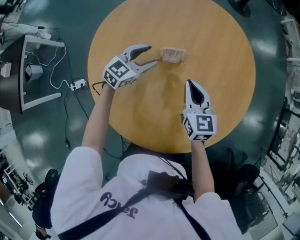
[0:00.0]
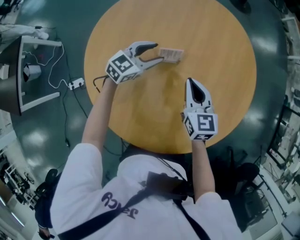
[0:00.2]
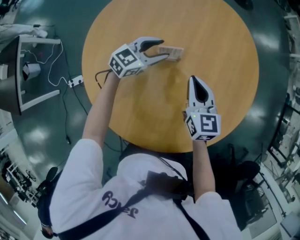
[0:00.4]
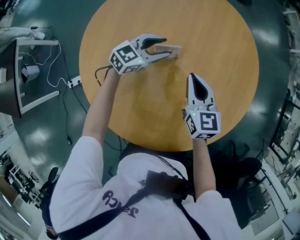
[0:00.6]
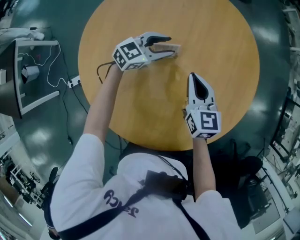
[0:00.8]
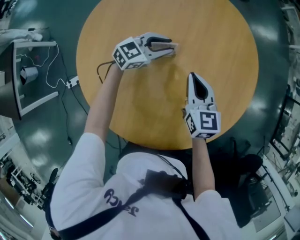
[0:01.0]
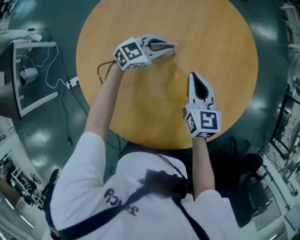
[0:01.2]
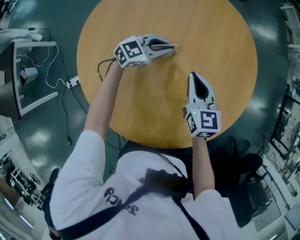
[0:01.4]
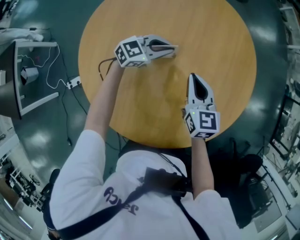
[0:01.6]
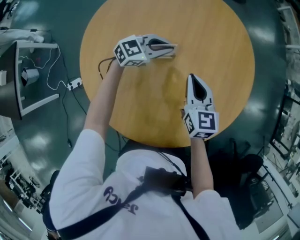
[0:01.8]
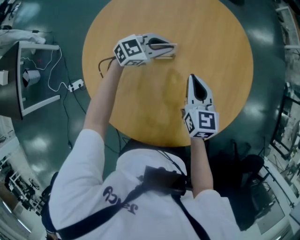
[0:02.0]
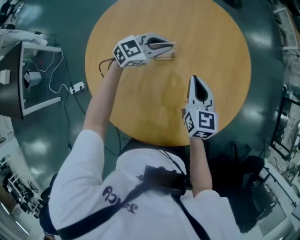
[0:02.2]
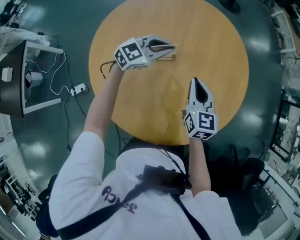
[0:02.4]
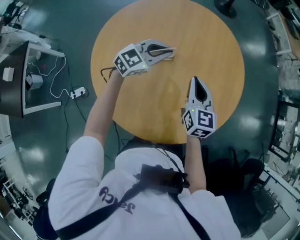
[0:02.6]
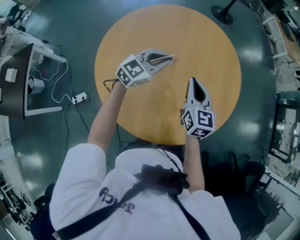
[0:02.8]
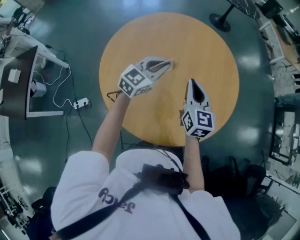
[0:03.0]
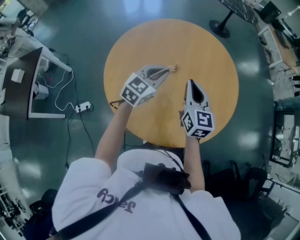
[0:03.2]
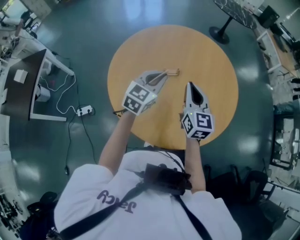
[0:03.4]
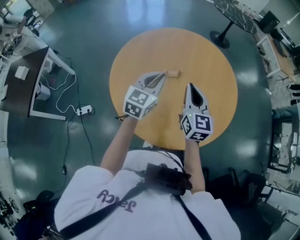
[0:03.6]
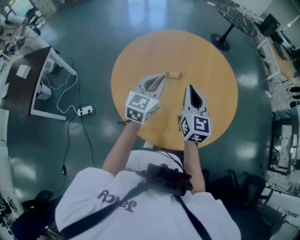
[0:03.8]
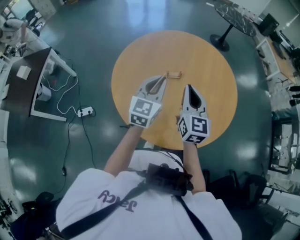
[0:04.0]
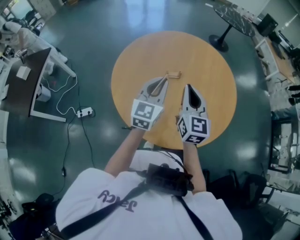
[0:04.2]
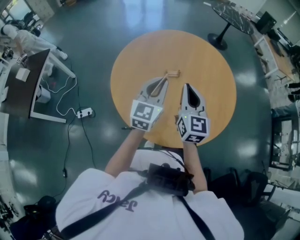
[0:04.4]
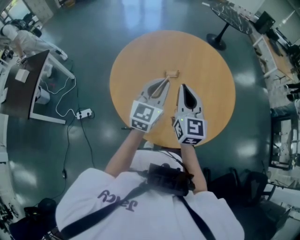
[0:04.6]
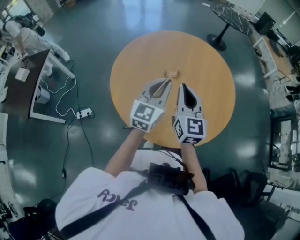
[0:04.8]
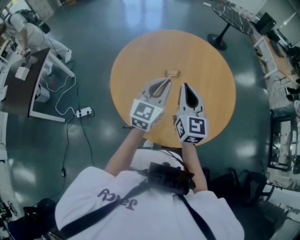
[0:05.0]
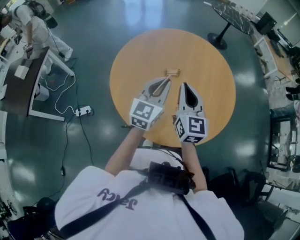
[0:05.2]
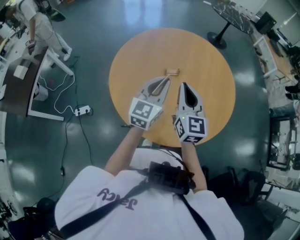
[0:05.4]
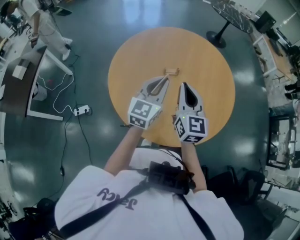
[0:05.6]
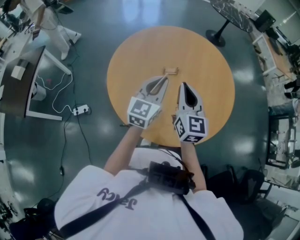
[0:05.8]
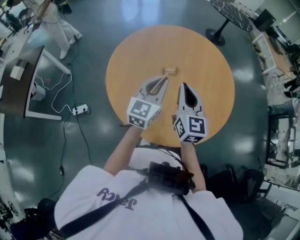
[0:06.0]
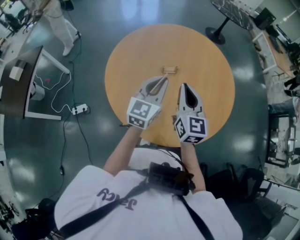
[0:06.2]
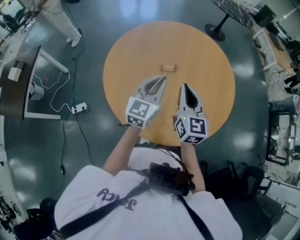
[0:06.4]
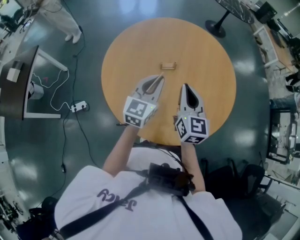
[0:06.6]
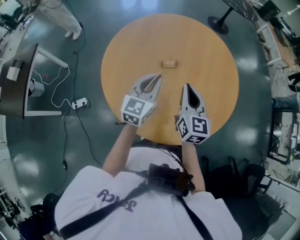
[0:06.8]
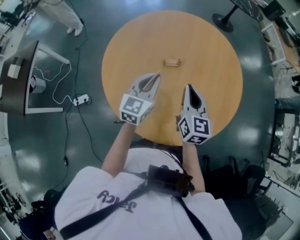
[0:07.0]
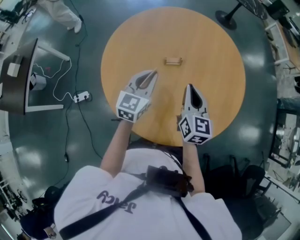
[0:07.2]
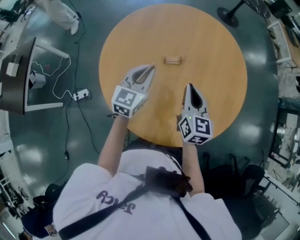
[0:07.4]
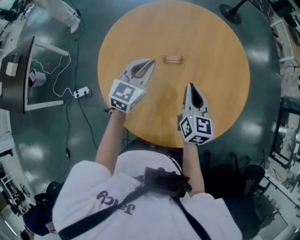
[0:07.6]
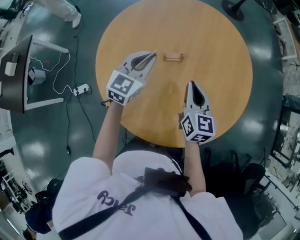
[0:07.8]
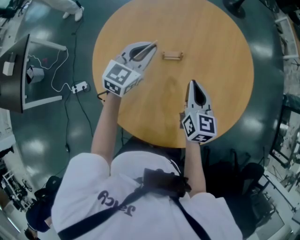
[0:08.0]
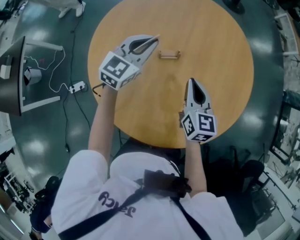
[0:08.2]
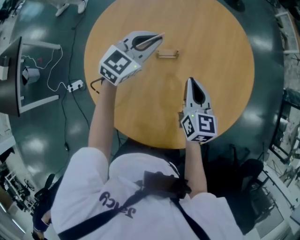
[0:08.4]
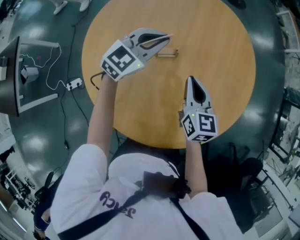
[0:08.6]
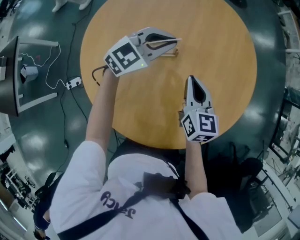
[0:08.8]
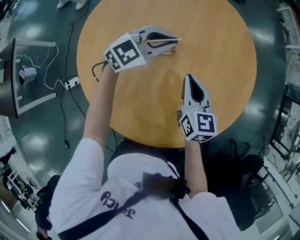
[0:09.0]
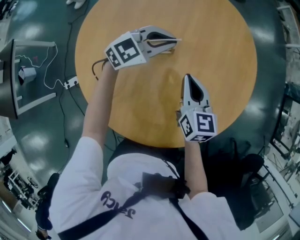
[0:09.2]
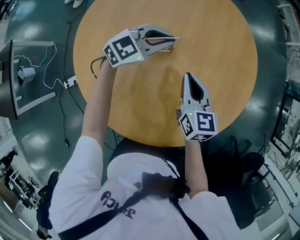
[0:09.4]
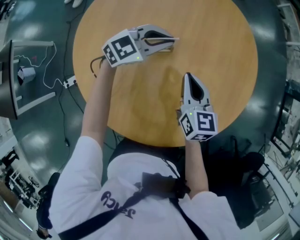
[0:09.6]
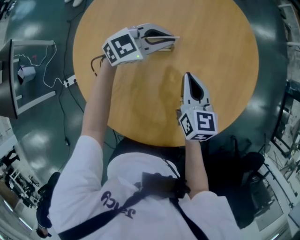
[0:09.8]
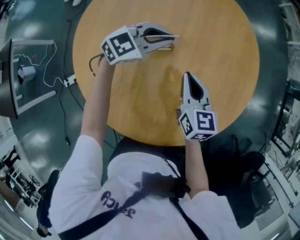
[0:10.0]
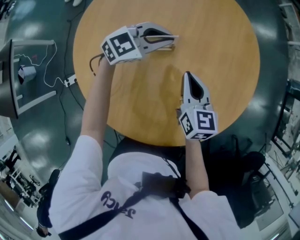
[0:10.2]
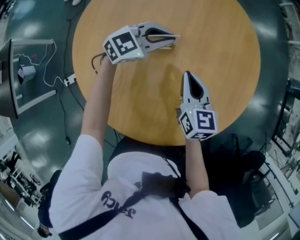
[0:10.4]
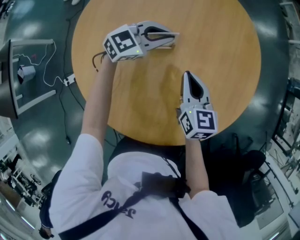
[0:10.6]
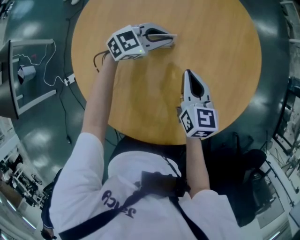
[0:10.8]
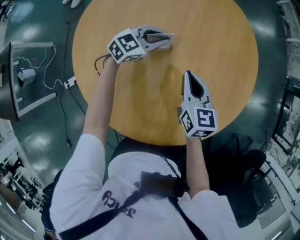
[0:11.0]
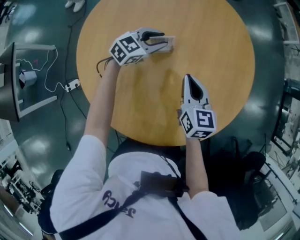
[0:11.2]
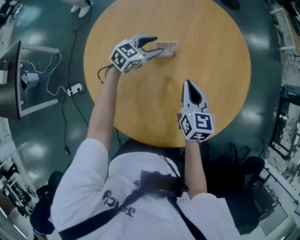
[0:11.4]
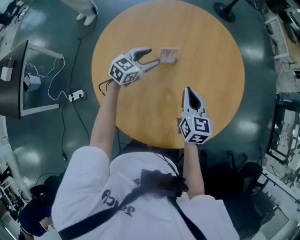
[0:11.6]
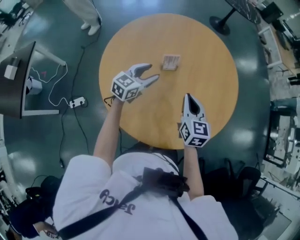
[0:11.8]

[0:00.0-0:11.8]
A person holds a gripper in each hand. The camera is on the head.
0:00.0 to 0:01.4: The left gripper goes approximately 10 cm to the right and forward, rotates roughly 20 degrees, and closes its fingers.
0:01.4 to 0:03.0: Both grippers move upward and backward, roughly 15 cm. The left gripper changes its angle by roughly 20 degrees.
0:03.0 to 0:04.4: Both grippers travel together backward and upward, some 10 cm. The left gripper rotates approximately 30 degrees.
0:04.4 to 0:06.0: The grippers move only a little.
0:06.0 to 0:07.4: Both grippers move downward and forward, approximately 10 cm.
0:07.4 to 0:08.8: The left gripper is displaced forward and to the right by approximately 15 cm, and rotates some 40 degrees. The right gripper is displaced forward and downward by some 10 cm.
0:08.8 to 0:10.4: The left gripper travels downward by roughly 5 cm.
0:10.4 to 0:11.8: The right gripper heads backward and upward, covering approximately 10 cm. Meanwhile the left gripper is displaced backward and to the left by approximately 15 cm, changes its angle by some 30 degrees, and opens up.

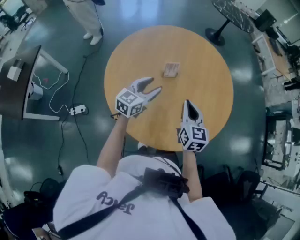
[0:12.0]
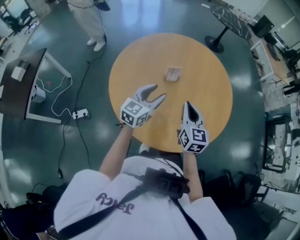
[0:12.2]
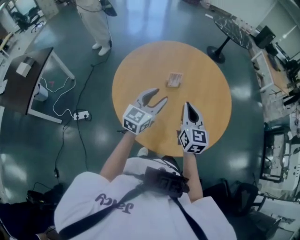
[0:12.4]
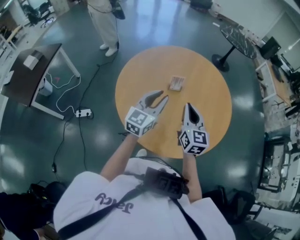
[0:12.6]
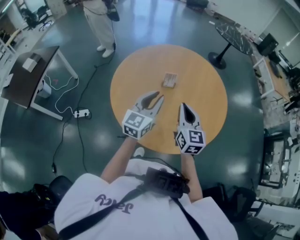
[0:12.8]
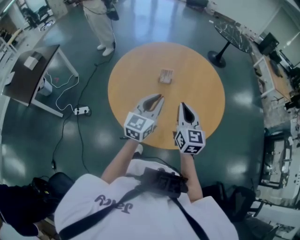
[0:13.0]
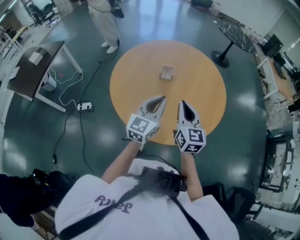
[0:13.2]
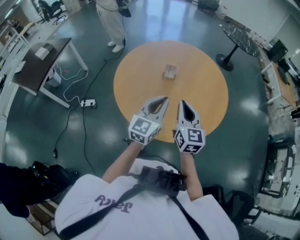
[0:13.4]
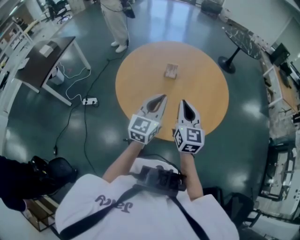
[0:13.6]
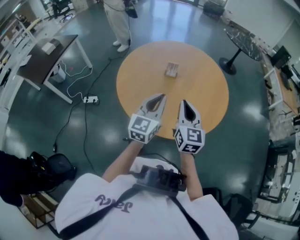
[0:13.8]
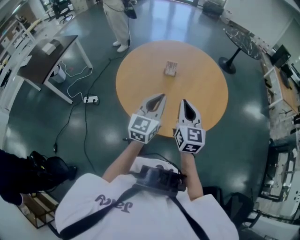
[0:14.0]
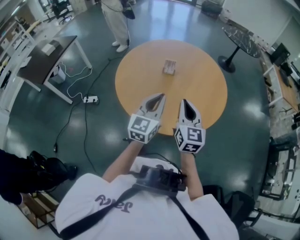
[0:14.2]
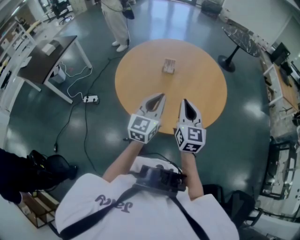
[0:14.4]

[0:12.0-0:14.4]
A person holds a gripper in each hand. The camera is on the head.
0:12.0 to 0:13.2: The left gripper heads backward, upward and to the right, covering some 20 cm, rotates some 30 degrees, and closes up. Meanwhile the right gripper moves backward, upward and to the right, about 10 cm.
0:13.2 to 0:14.4: Both grippers move backward, some 5 cm.

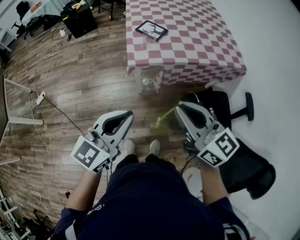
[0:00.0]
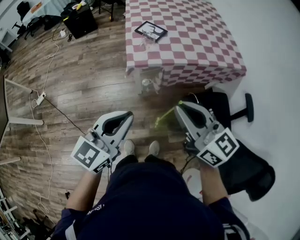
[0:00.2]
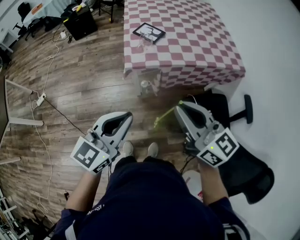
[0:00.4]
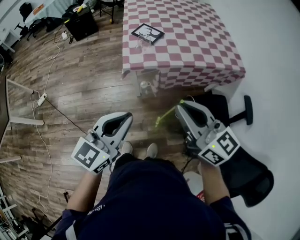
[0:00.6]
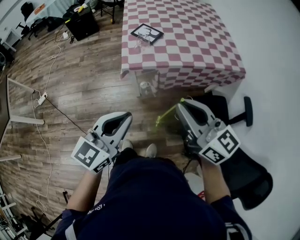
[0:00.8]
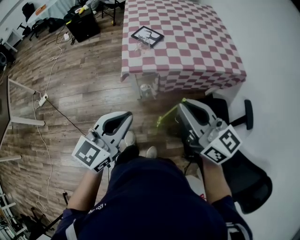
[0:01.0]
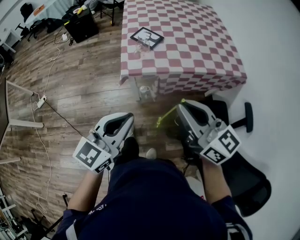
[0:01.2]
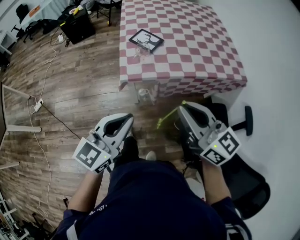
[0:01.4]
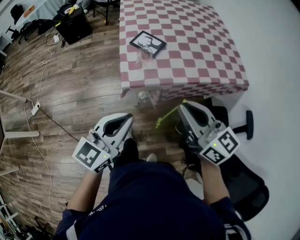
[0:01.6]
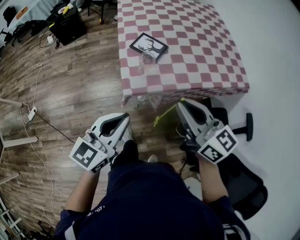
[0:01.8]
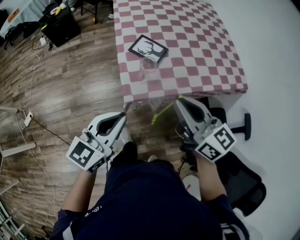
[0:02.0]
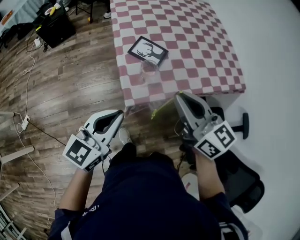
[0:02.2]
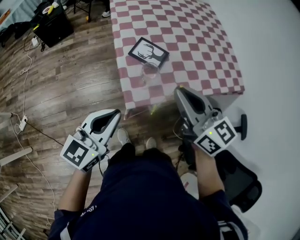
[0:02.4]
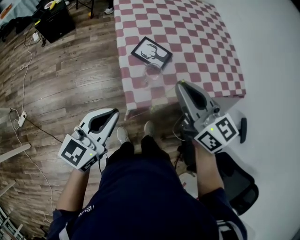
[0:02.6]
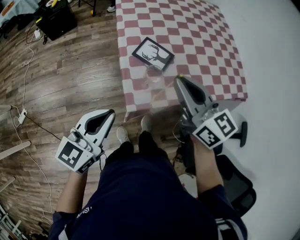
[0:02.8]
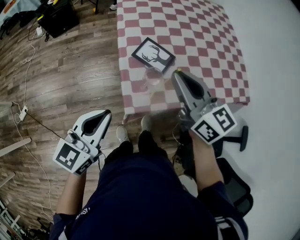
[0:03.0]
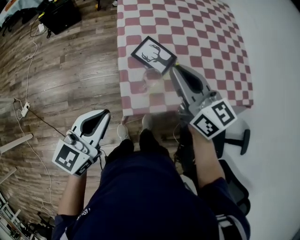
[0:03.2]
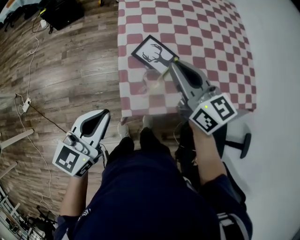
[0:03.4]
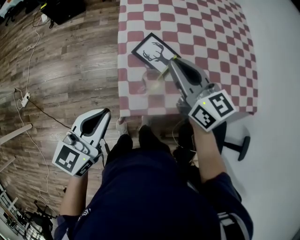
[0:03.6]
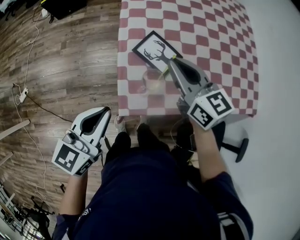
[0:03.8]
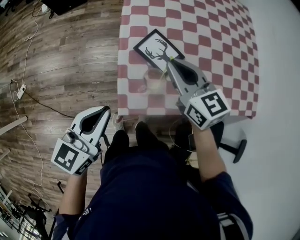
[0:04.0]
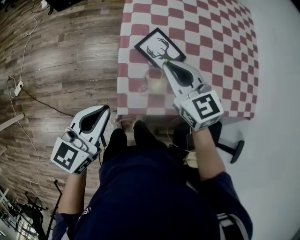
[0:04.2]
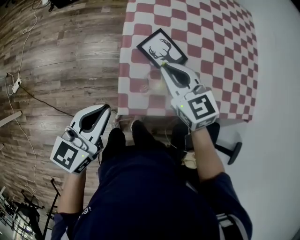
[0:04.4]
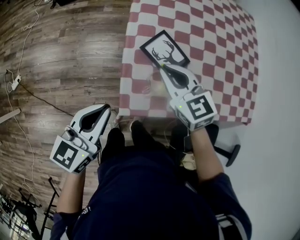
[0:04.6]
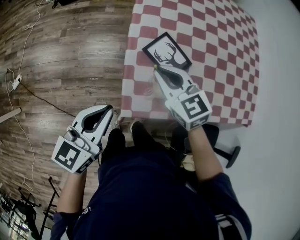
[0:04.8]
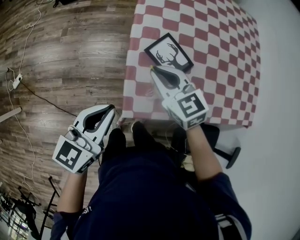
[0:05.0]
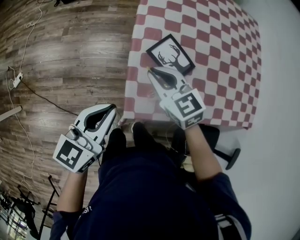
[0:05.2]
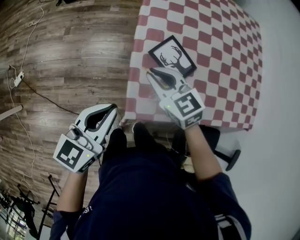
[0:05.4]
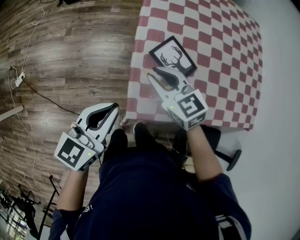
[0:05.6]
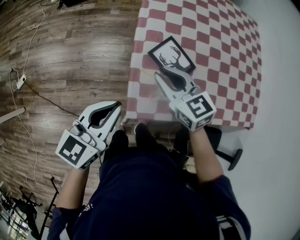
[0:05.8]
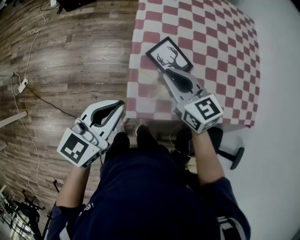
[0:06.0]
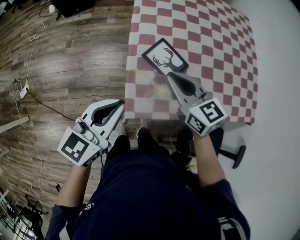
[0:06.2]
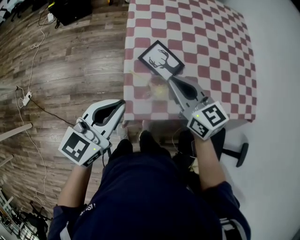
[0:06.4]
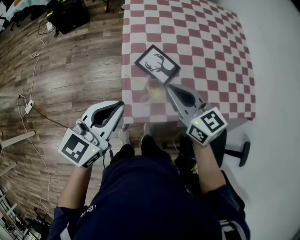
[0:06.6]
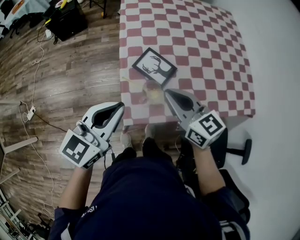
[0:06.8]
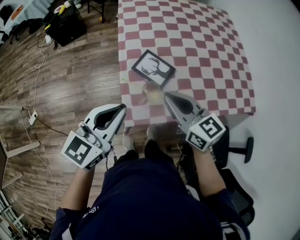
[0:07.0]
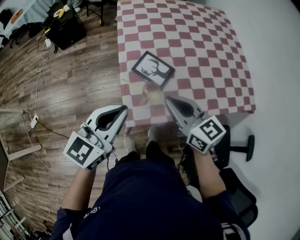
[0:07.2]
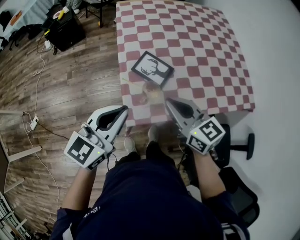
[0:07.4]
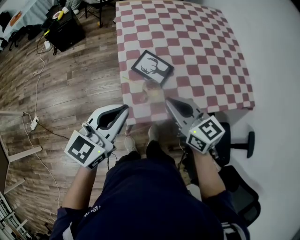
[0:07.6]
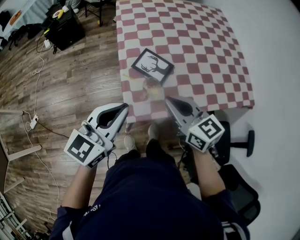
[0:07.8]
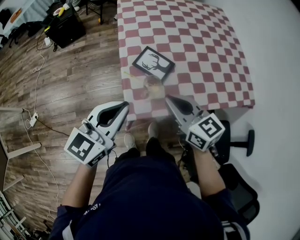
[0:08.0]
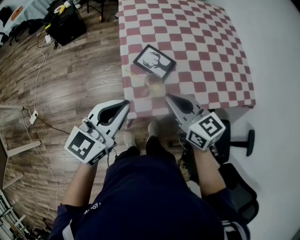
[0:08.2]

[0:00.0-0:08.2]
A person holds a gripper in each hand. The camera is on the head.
0:00.0 to 0:01.6: The two grippers go about 15 cm forward.
0:01.6 to 0:03.2: The right gripper travels forward by about 30 cm; the left gripper heads forward and to the left, covering some 25 cm.
0:03.2 to 0:05.0: The left gripper is displaced downward by roughly 5 cm. Meanwhile the right gripper shifts roughly 20 cm downward and to the left, and swivels about 30 degrees.
0:05.0 to 0:06.6: The right gripper is displaced upward, to the right and backward by about 15 cm, and turns by about 20 degrees, while the left gripper goes some 10 cm upward and to the right.
0:06.6 to 0:08.2: The right gripper heads backward, covering roughly 10 cm.

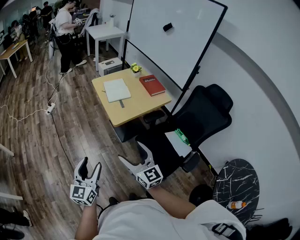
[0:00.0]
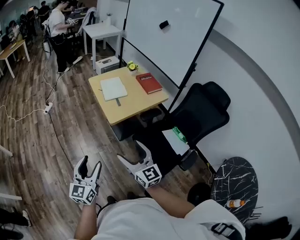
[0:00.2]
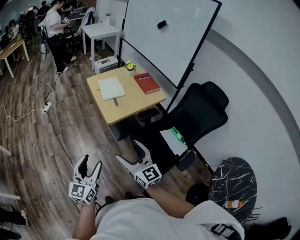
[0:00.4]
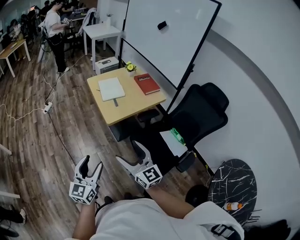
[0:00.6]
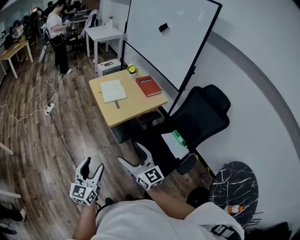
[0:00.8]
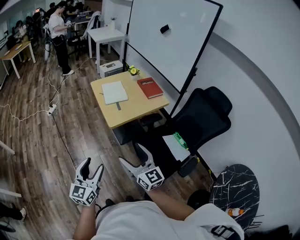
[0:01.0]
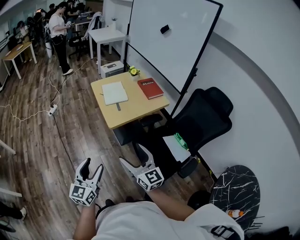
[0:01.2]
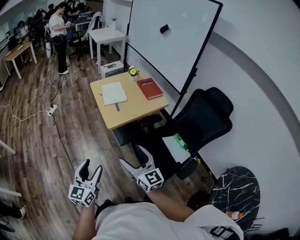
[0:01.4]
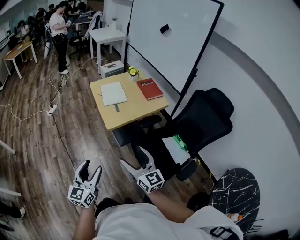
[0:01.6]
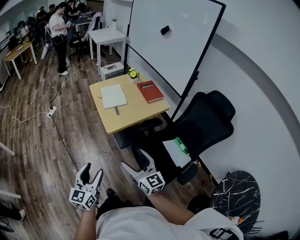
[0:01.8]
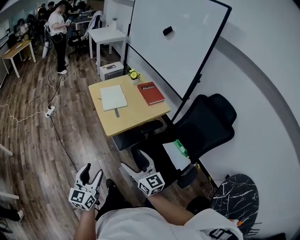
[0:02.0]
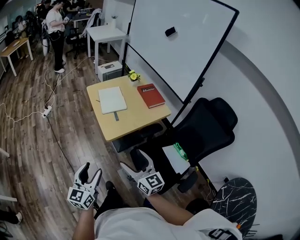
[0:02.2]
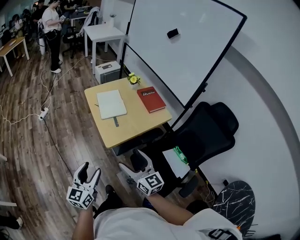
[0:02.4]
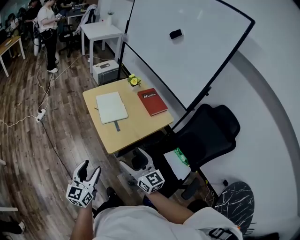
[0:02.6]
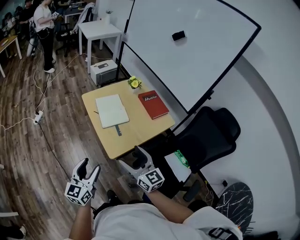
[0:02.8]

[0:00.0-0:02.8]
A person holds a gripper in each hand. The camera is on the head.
0:00.0 to 0:01.4: The two grippers go some 10 cm to the right.
0:01.4 to 0:02.8: Both grippers travel together forward, some 30 cm.
